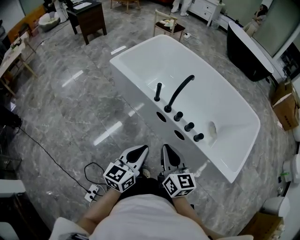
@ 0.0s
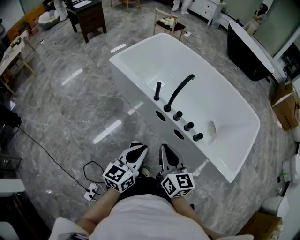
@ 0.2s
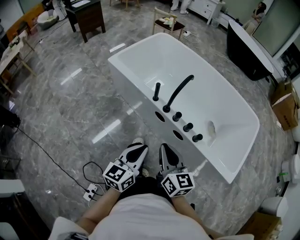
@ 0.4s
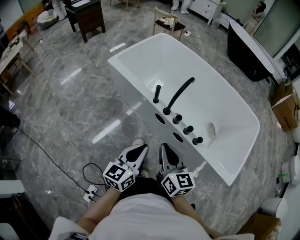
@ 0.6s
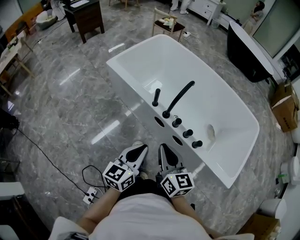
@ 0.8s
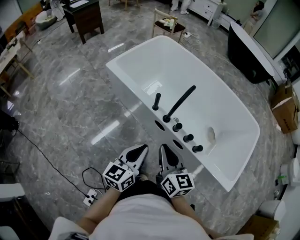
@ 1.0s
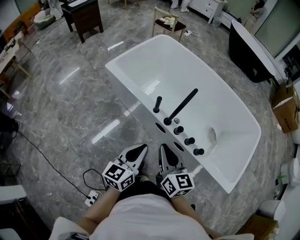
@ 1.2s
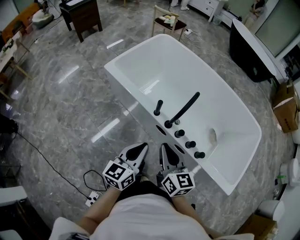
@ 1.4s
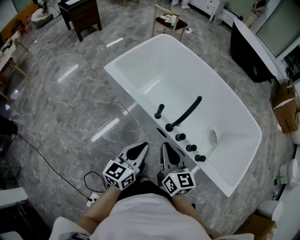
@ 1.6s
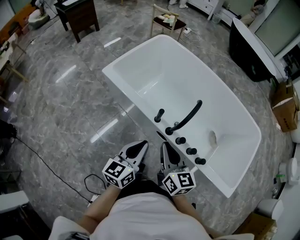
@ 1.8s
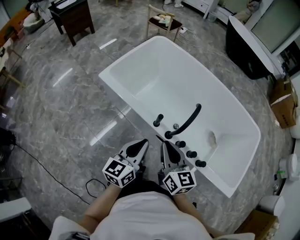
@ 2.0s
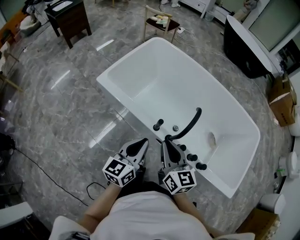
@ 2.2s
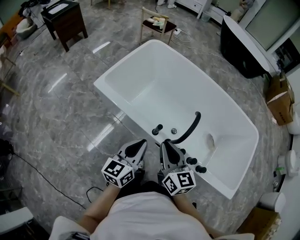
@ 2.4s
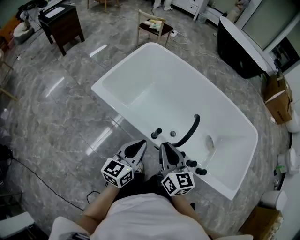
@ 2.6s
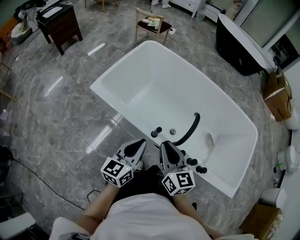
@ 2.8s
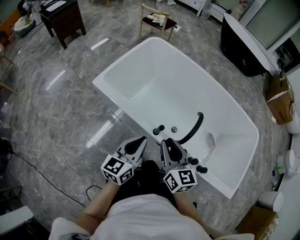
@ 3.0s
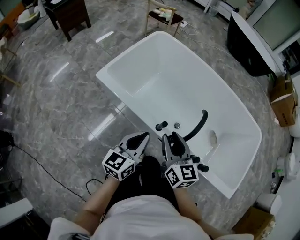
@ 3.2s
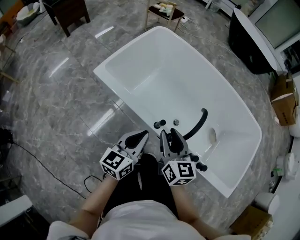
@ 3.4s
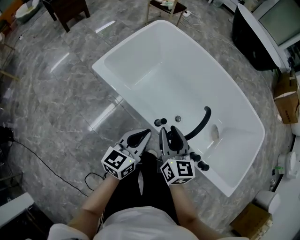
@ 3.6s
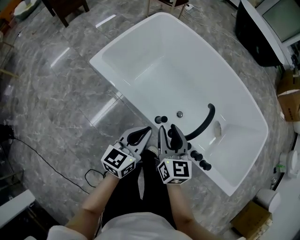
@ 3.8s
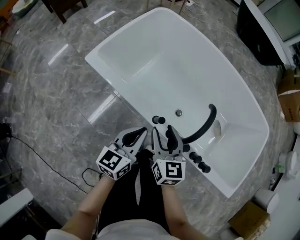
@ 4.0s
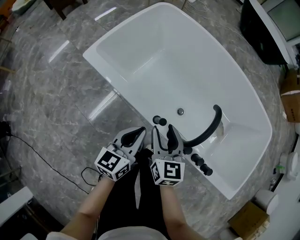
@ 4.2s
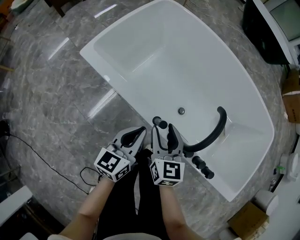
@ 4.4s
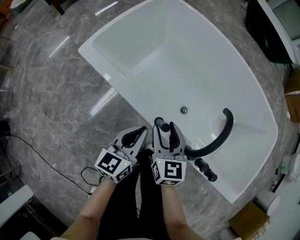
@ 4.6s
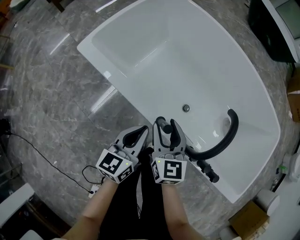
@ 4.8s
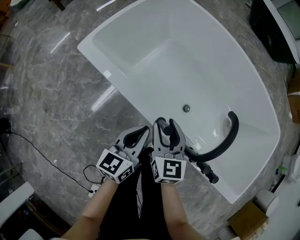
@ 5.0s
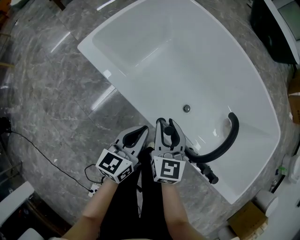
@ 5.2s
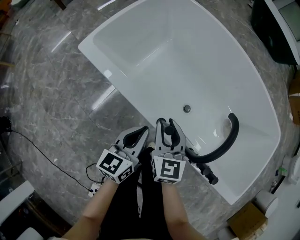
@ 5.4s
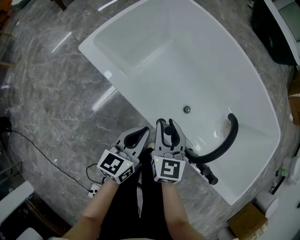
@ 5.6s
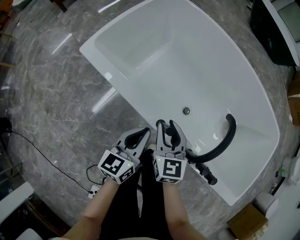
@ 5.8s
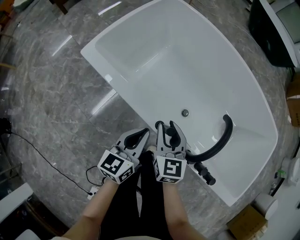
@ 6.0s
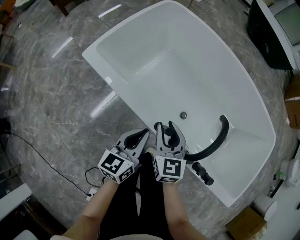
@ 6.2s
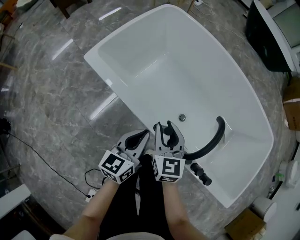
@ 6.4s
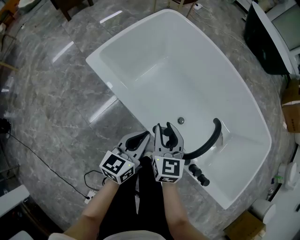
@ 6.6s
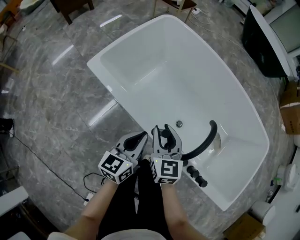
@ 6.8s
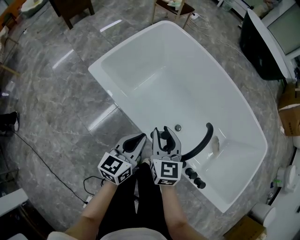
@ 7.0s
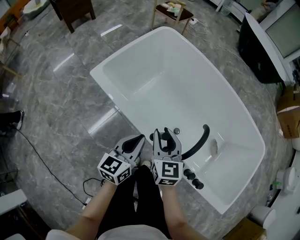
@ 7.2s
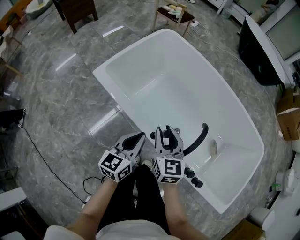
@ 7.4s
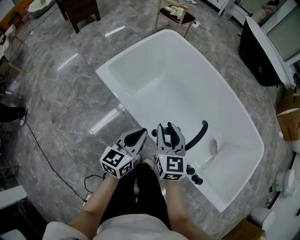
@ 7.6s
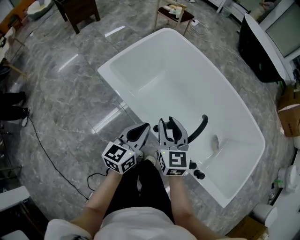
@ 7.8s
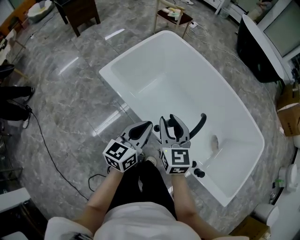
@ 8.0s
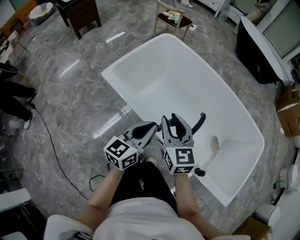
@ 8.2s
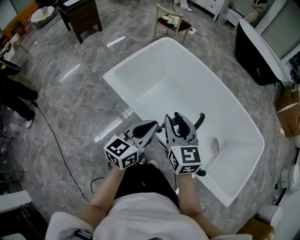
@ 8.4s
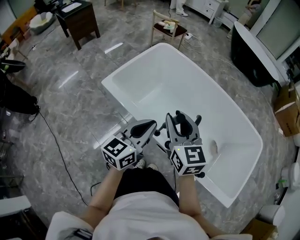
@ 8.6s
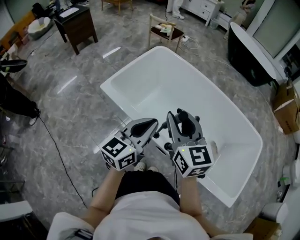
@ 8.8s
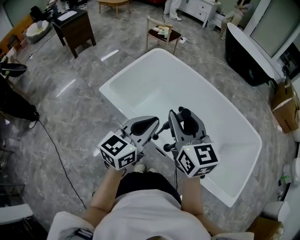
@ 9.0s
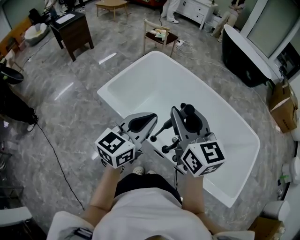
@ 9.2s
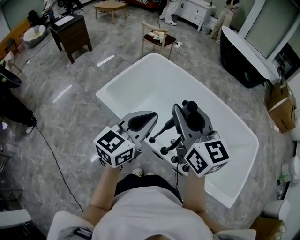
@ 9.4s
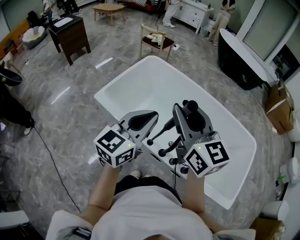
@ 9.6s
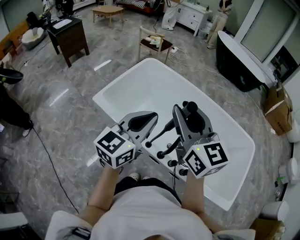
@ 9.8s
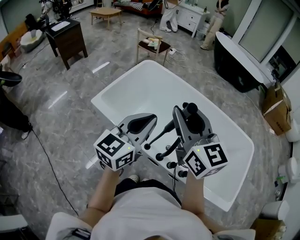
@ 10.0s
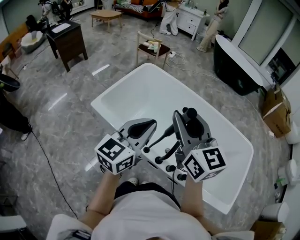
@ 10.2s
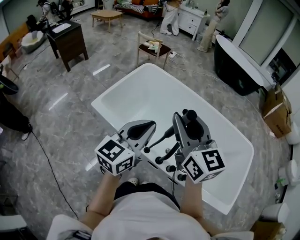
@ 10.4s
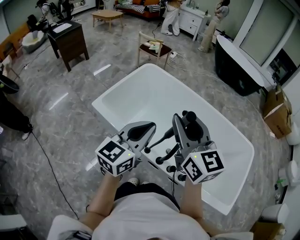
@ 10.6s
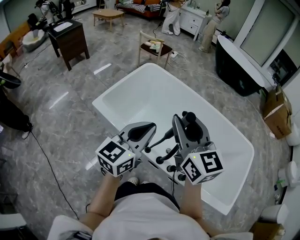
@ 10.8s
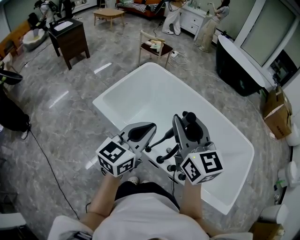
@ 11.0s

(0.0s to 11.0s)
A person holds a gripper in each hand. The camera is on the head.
0.0s - 1.6s: The two grippers go roughly 15 cm forward.
1.6s - 3.2s: Both grippers travel together forward, about 15 cm. The right gripper opens up.
3.2s - 4.8s: The left gripper travels downward by roughly 15 cm. Meanwhile the right gripper travels downward and forward by some 20 cm.
4.8s - 6.2s: The grippers stay close to where they were, moving slightly.
6.2s - 7.8s: Both grippers move upward, roughly 15 cm.
7.8s - 9.4s: Both grippers travel together upward, about 20 cm. The left gripper turns by about 20 degrees.
9.4s - 11.0s: The grippers stay close to where they were, moving slightly.

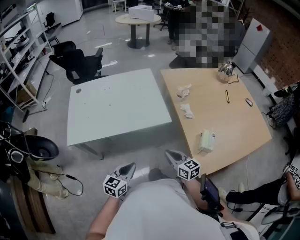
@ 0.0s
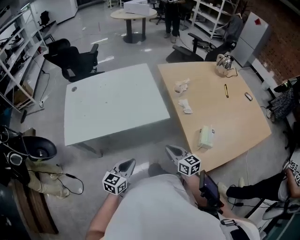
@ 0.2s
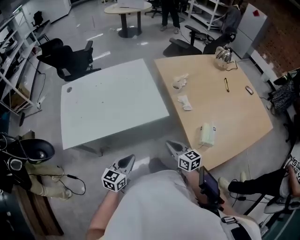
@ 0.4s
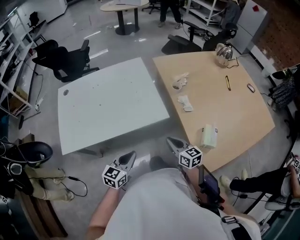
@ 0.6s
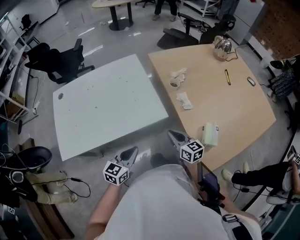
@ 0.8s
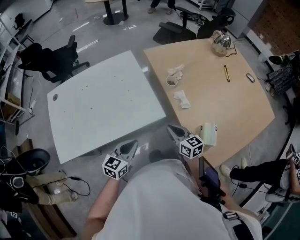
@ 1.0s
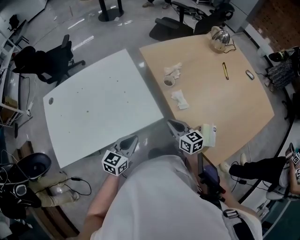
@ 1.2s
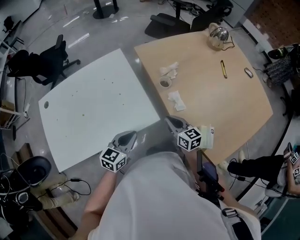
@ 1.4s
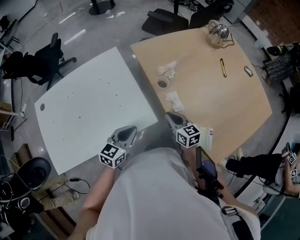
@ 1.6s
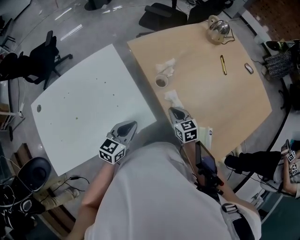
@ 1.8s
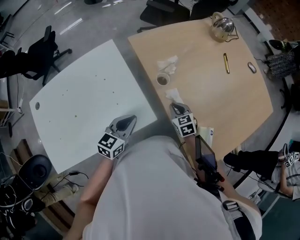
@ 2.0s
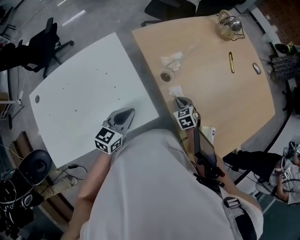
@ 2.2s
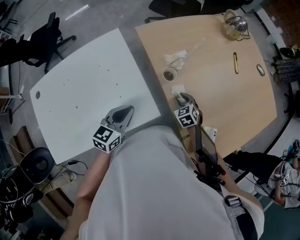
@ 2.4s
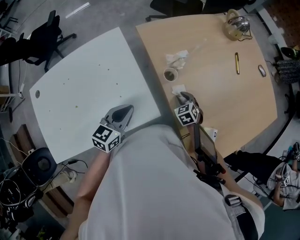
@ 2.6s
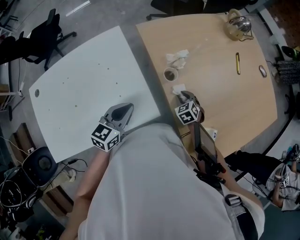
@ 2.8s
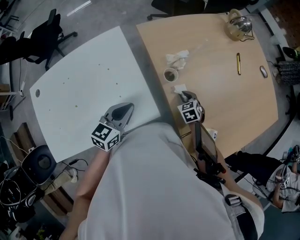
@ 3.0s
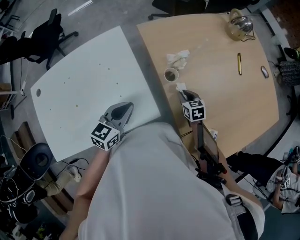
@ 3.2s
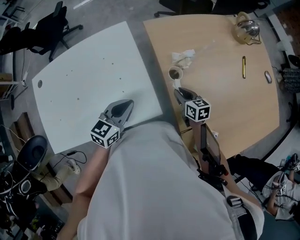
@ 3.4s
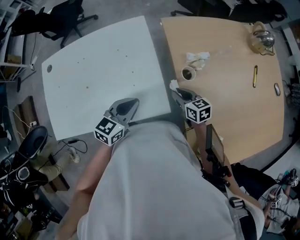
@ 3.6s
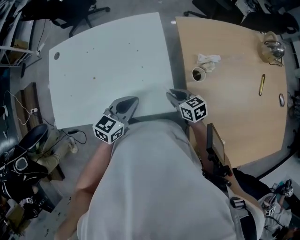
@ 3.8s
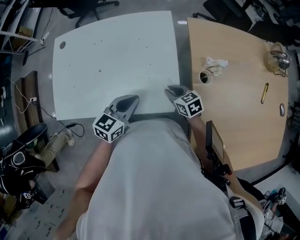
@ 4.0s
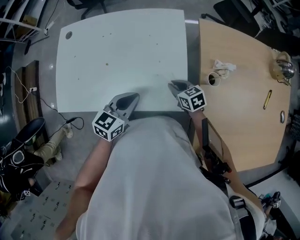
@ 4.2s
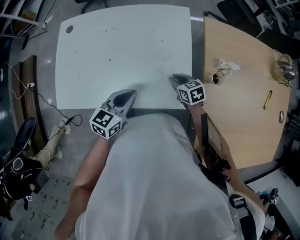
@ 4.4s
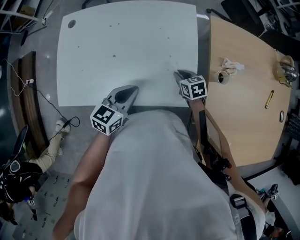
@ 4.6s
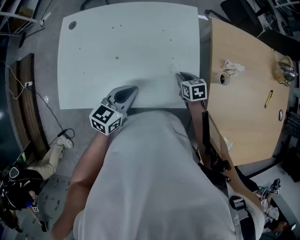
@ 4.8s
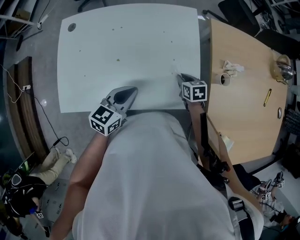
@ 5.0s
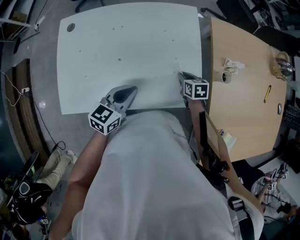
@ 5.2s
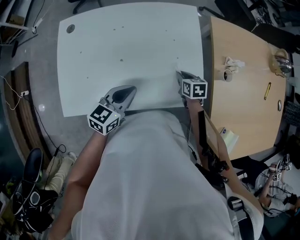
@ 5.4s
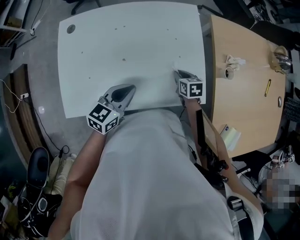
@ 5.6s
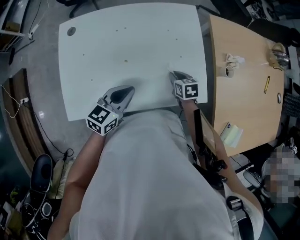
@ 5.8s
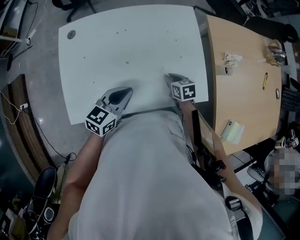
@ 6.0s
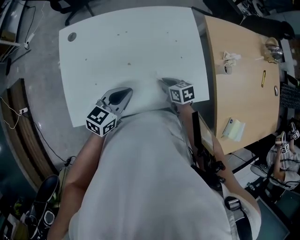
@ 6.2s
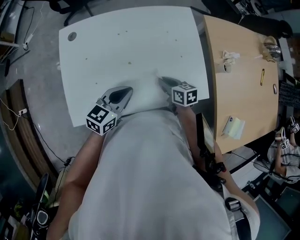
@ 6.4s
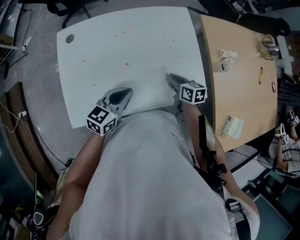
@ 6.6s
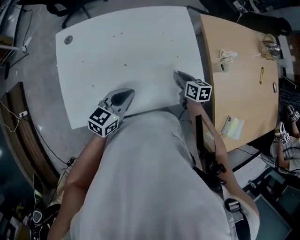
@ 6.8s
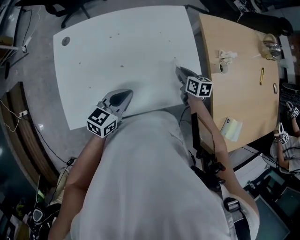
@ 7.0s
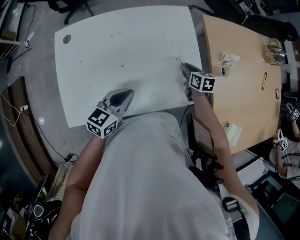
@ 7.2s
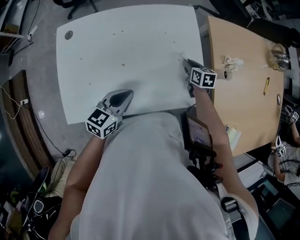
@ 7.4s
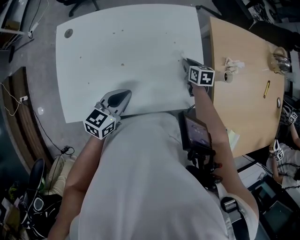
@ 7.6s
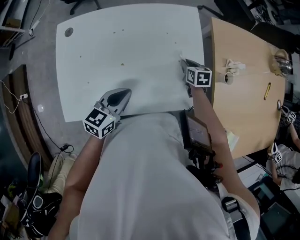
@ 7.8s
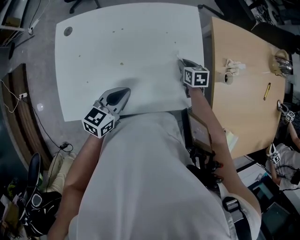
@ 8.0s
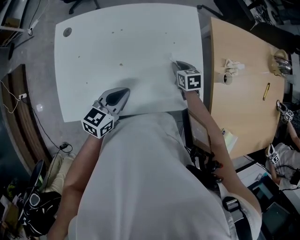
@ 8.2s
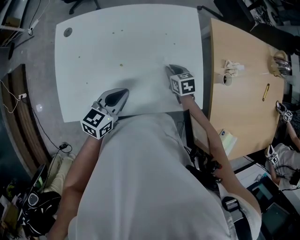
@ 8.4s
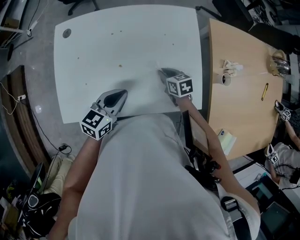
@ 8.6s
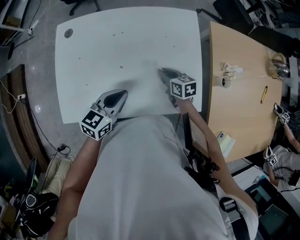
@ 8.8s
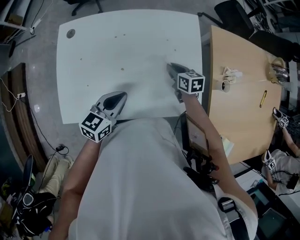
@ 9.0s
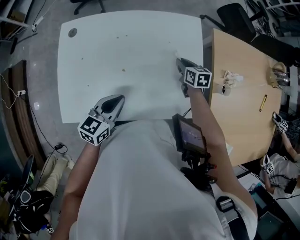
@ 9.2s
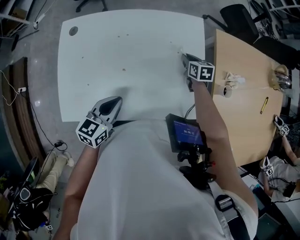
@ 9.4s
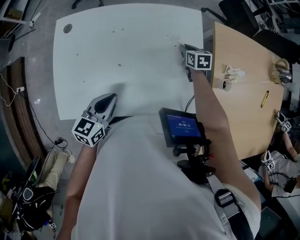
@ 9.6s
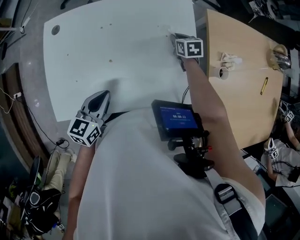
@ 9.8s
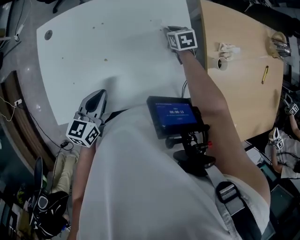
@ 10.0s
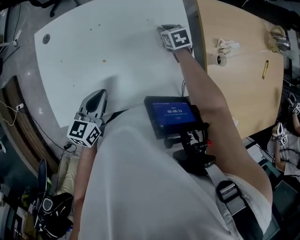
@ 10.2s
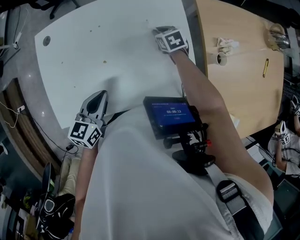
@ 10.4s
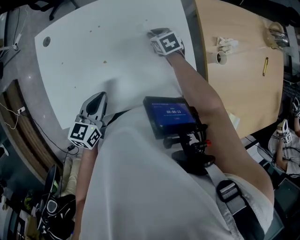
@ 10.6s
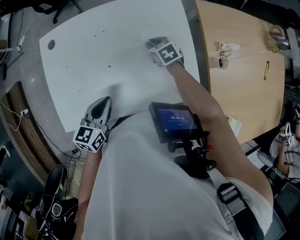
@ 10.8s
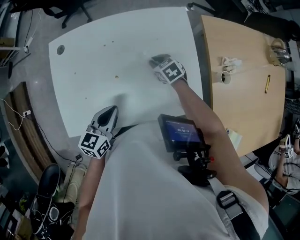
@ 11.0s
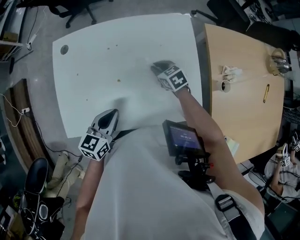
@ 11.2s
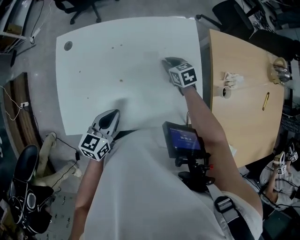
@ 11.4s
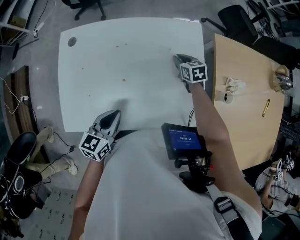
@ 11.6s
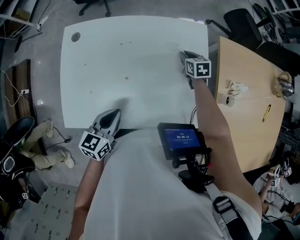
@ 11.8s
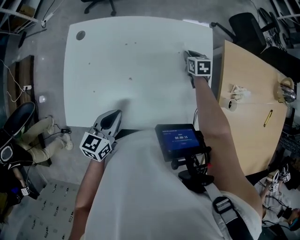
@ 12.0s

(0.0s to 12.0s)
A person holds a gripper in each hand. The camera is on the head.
0.0s - 1.6s: Both grippers travel together forward, approximately 30 cm.
1.6s - 3.0s: The right gripper shifts approximately 15 cm downward and forward, and tilts its fingers roughly 30 degrees downward; the left gripper travels forward by about 10 cm.
3.0s - 4.4s: The left gripper moves roughly 15 cm, and changes its angle by some 20 degrees, while the right gripper ends up approximately 30 cm from where it was, and swivels some 40 degrees.
4.4s - 6.0s: The two grippers go some 10 cm to the left.
6.0s - 7.6s: The right gripper shifts about 15 cm forward and to the right.
7.6s - 9.0s: The right gripper goes approximately 10 cm to the left.
9.0s - 10.4s: The right gripper is displaced forward by roughly 10 cm, and swivels some 20 degrees.
10.4s - 12.0s: The right gripper is displaced forward by roughly 5 cm.

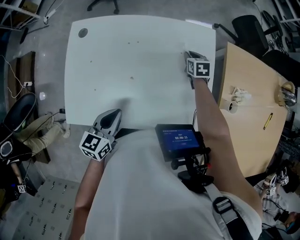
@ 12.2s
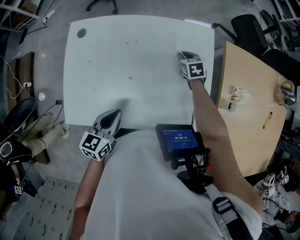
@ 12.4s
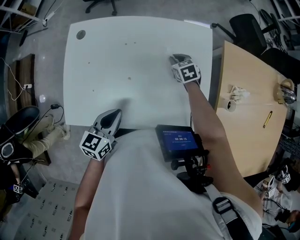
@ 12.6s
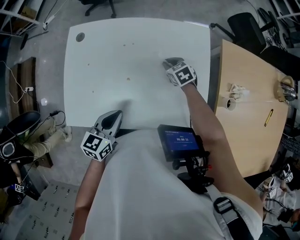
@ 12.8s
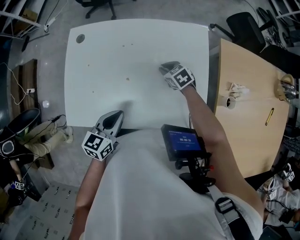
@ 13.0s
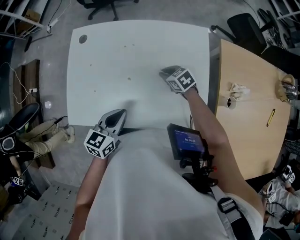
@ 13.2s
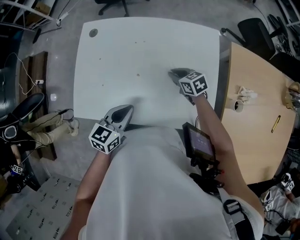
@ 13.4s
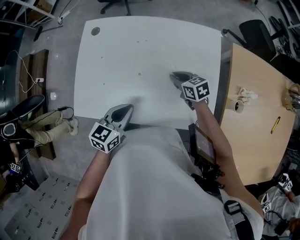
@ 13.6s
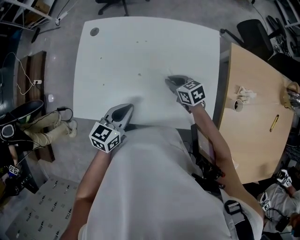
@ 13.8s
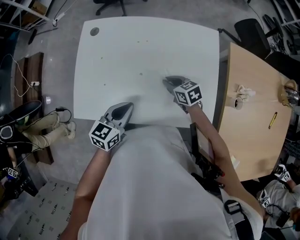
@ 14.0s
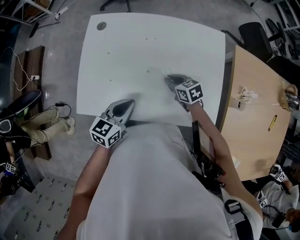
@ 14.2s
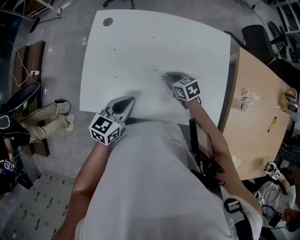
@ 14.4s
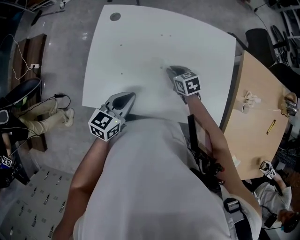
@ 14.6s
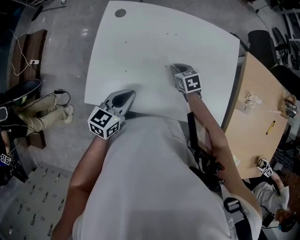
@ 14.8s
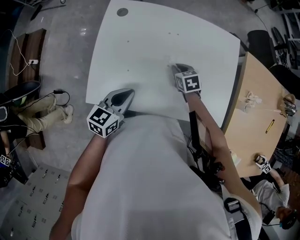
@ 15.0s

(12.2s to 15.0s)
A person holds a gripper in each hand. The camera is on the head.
12.2s - 13.6s: The right gripper moves backward and to the left, some 20 cm, and turns by about 30 degrees.
13.6s - 15.0s: Both grippers travel together to the left, roughly 10 cm. The right gripper turns by about 20 degrees.
